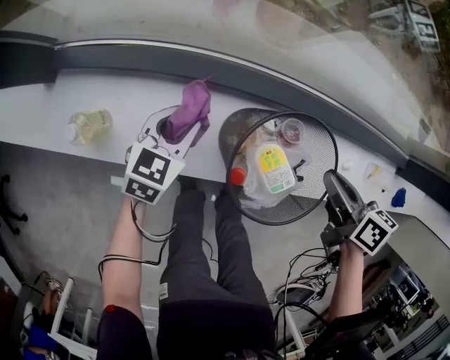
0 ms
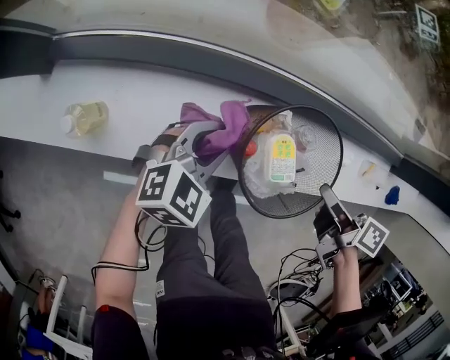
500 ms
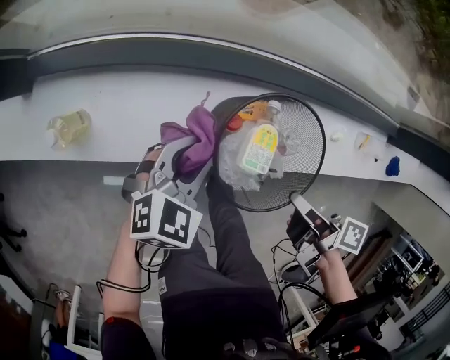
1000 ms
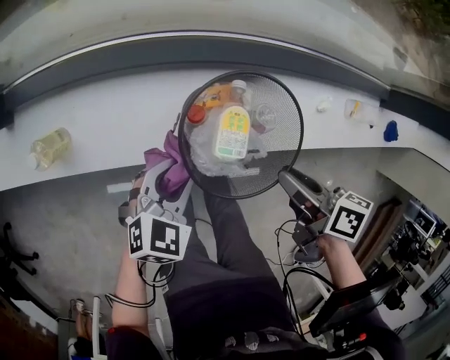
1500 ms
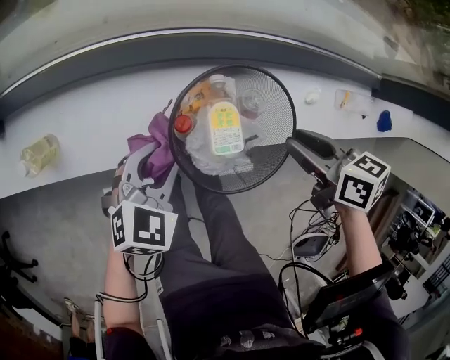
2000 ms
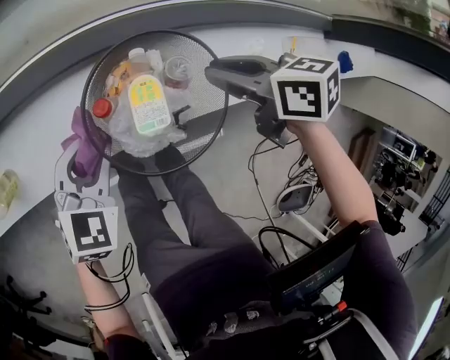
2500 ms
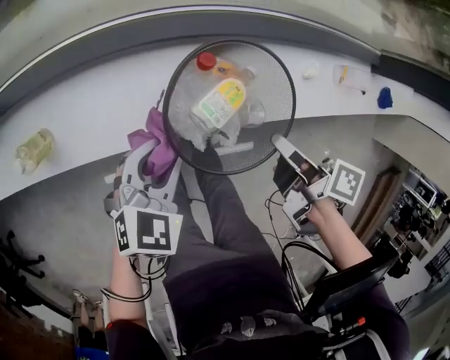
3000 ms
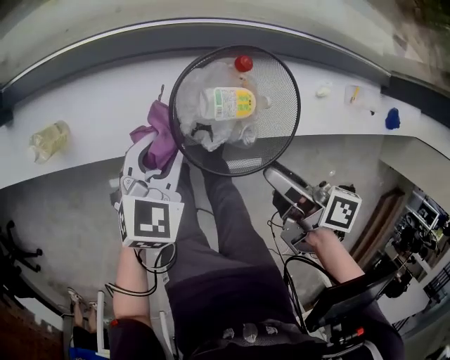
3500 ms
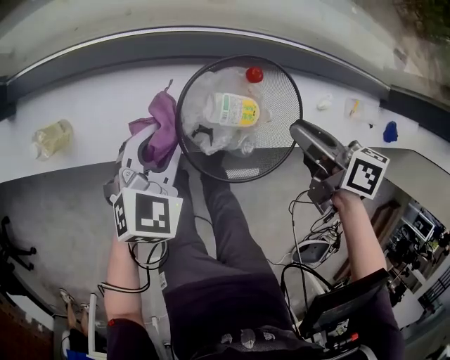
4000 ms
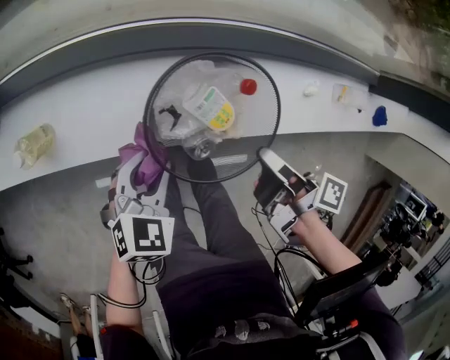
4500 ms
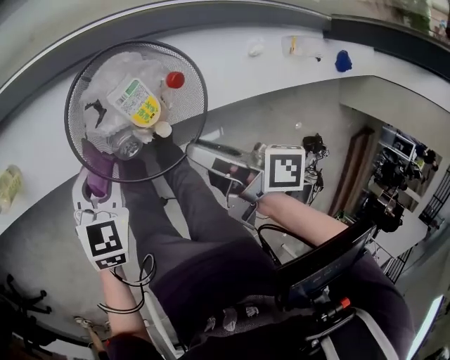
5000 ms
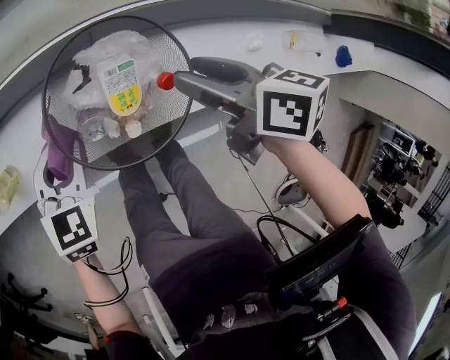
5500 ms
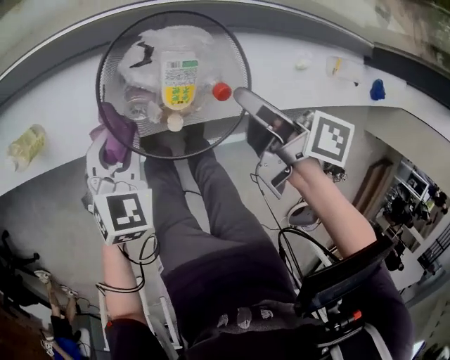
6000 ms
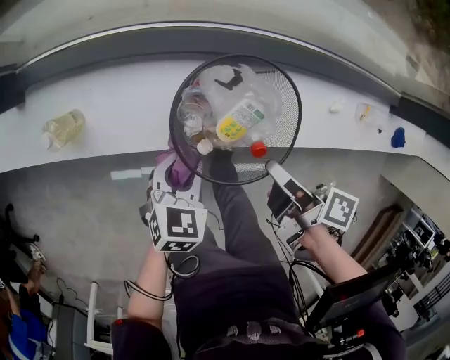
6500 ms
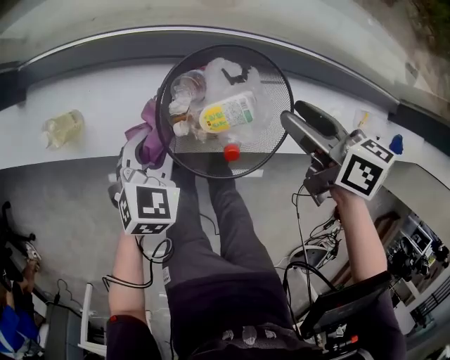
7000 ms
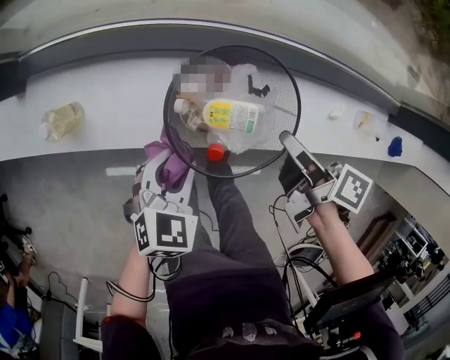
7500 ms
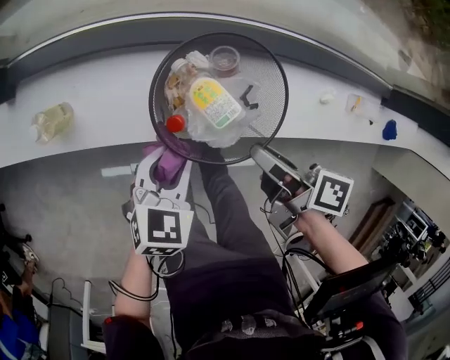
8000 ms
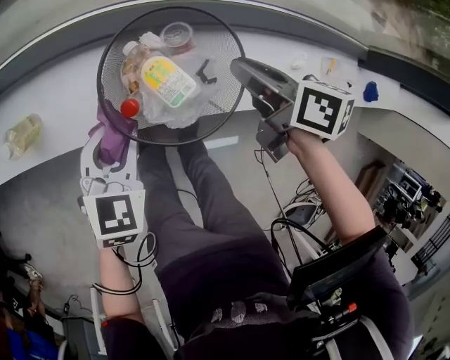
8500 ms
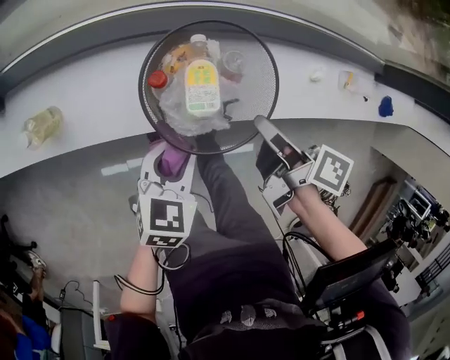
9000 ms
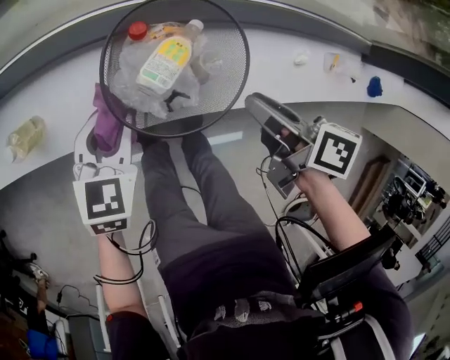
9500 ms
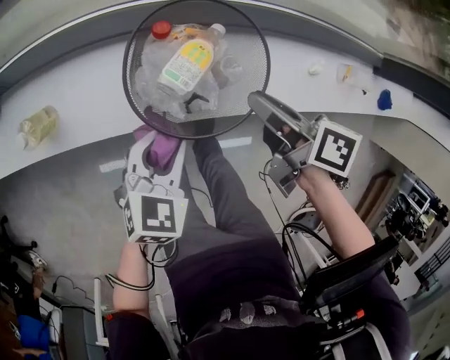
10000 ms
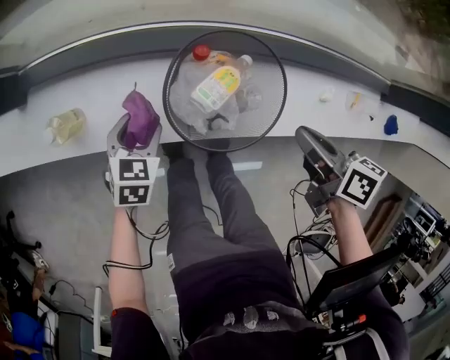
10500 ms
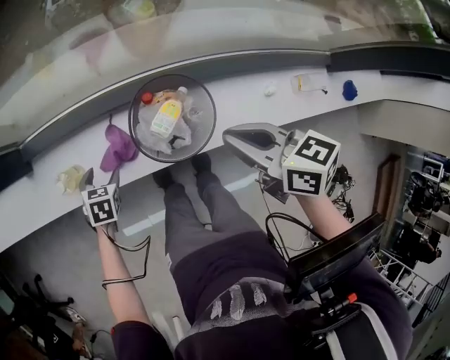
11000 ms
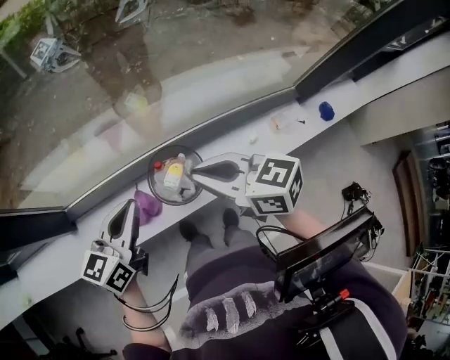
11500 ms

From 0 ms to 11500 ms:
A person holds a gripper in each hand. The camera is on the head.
From 0 ms to 2000 ms: The left gripper shifts about 15 cm to the right, backward and upward, and swivels some 20 degrees. The right gripper travels backward by some 5 cm.
From 2000 ms to 4000 ms: The right gripper swings forward and backward, about 15 cm each way, with 2 reversals, and opens, then closes again.
From 4000 ms to 6000 ms: The left gripper goes forward and backward, roughly 10 cm each way, reversing 2 times, while the right gripper swings forward and backward, roughly 10 cm each way, with 2 reversals, and rotates approximately 30 degrees.
From 6000 ms to 7500 ms: The right gripper moves forward and backward over some 10 cm, changing direction 2 times, and opens, then closes again.
From 7500 ms to 9500 ms: The right gripper goes forward and backward, some 10 cm each way, reversing 2 times. The left gripper is displaced forward by about 5 cm.
From 9500 ms to 11500 ms: Both grippers travel together upward, about 30 cm. The left gripper tilts its fingers roughly 30 degrees upward, and opens and closes again, while the right gripper rolls counterclockwise, seen from behind, by approximately 40 degrees, and closes.

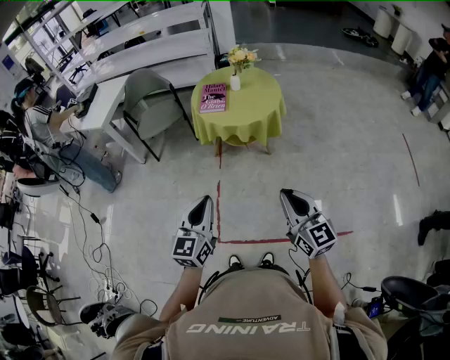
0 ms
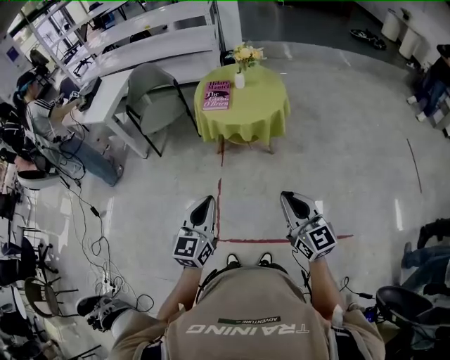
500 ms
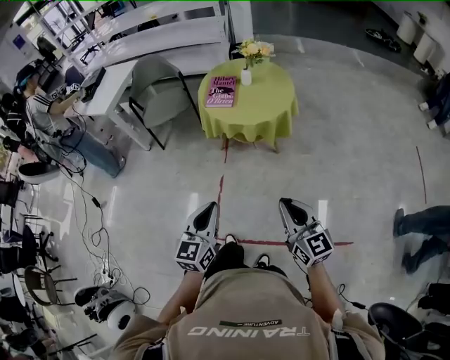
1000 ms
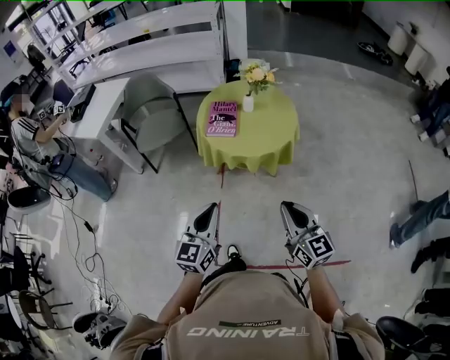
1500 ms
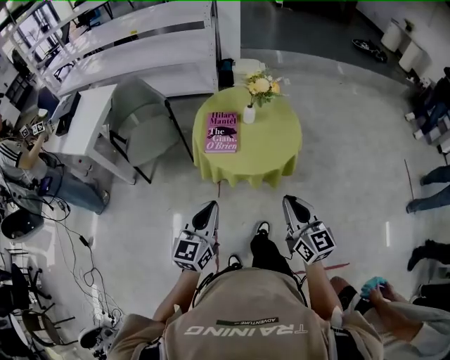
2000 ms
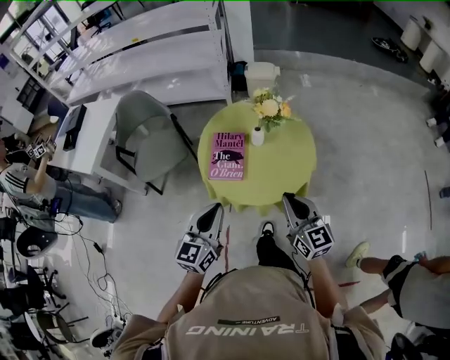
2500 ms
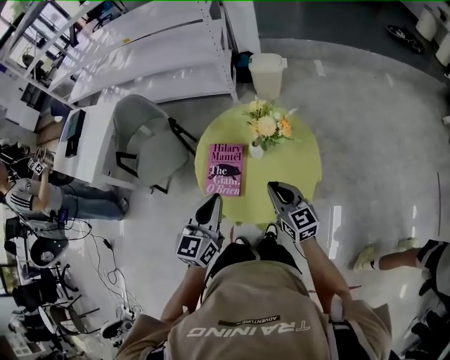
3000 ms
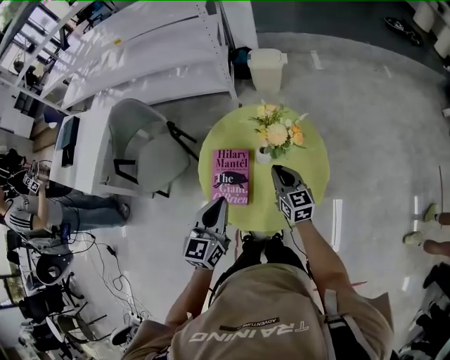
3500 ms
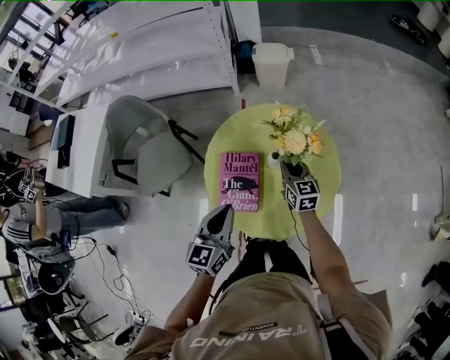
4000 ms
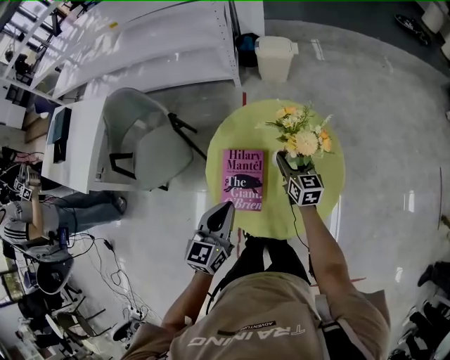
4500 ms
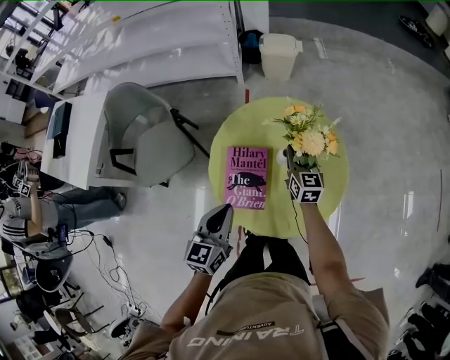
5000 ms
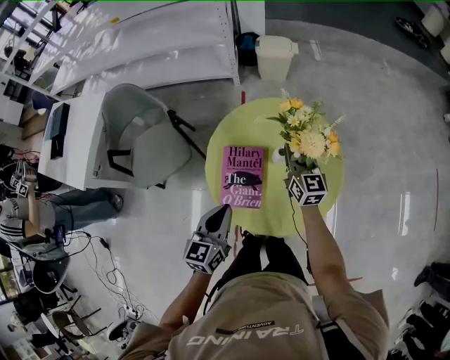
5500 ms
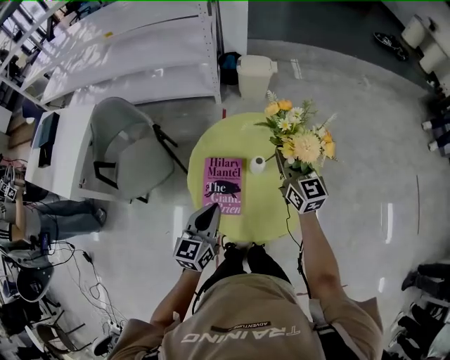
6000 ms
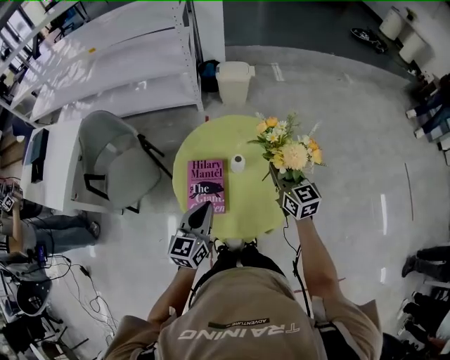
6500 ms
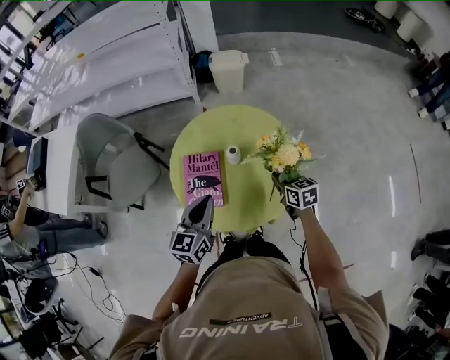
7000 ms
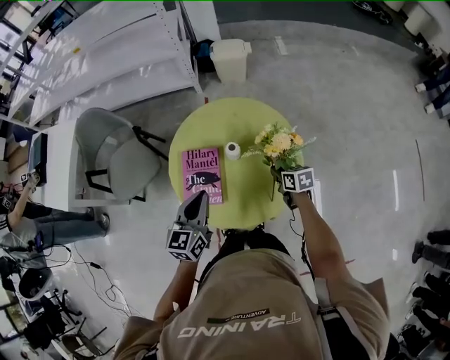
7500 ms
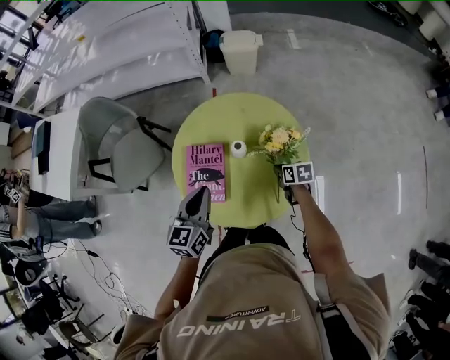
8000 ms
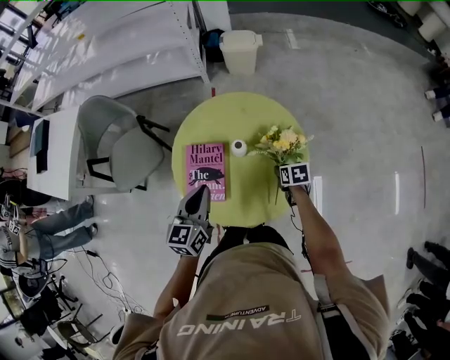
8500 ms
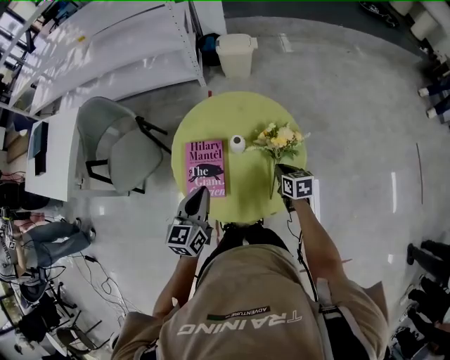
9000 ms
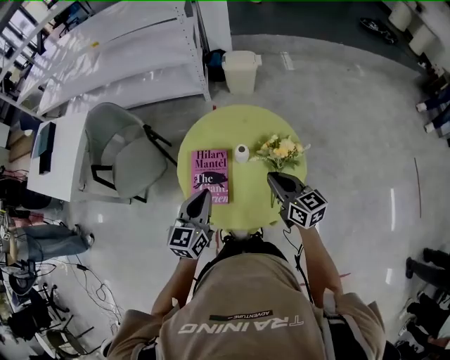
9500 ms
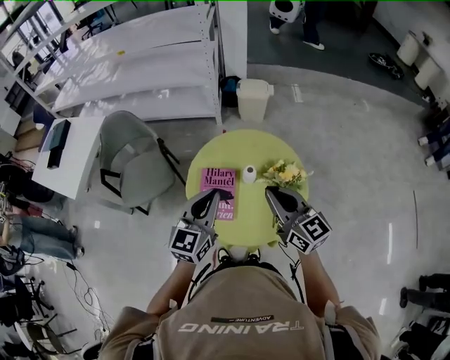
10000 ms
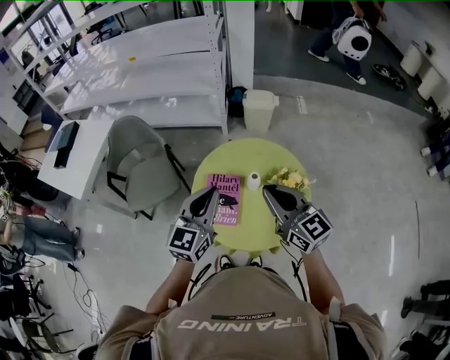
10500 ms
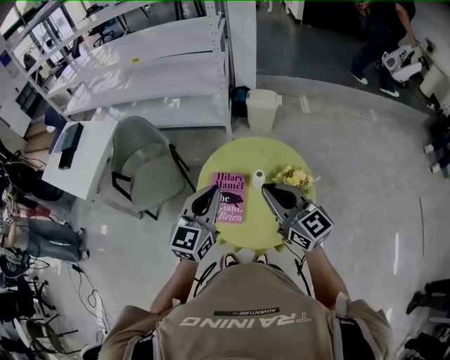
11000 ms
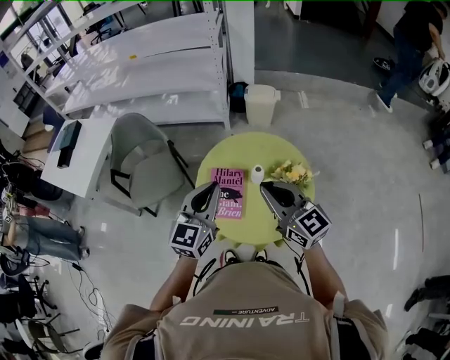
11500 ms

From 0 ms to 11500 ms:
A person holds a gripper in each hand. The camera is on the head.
From 0 ms to 2000 ms: Both grippers move forward, about 35 cm.
From 2000 ms to 4000 ms: The grippers both shift forward by about 50 cm.
From 4000 ms to 6000 ms: The right gripper heads upward, covering roughly 15 cm, and opens and closes again.
From 6000 ms to 7500 ms: The left gripper shifts some 5 cm to the right, while the right gripper is displaced downward and to the right by roughly 25 cm, and angles its fingers downward, by roughly 40 degrees.
From 7500 ms to 9500 ms: The right gripper heads upward and to the left, covering some 20 cm, angles its fingers upward, by approximately 30 degrees, and opens and closes again.
From 9500 ms to 11500 ms: The left gripper heads upward, covering about 15 cm. The right gripper heads upward and to the left, covering about 20 cm, and swivels some 30 degrees.

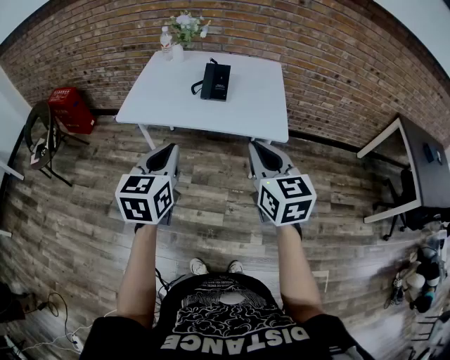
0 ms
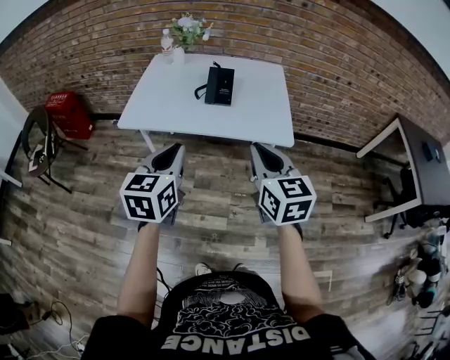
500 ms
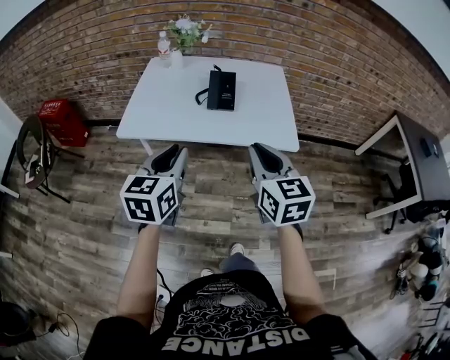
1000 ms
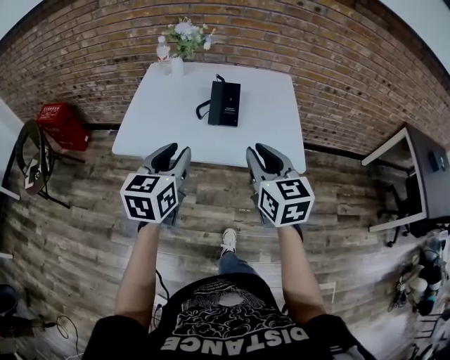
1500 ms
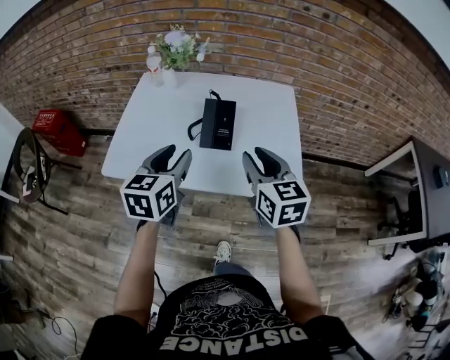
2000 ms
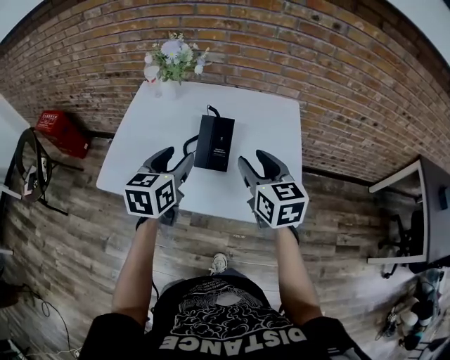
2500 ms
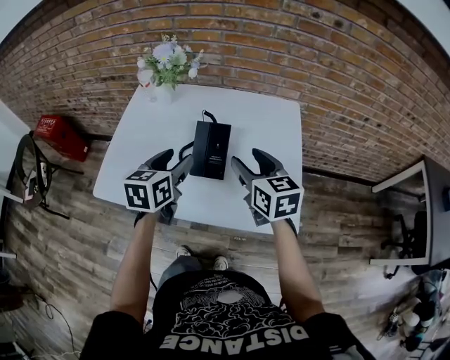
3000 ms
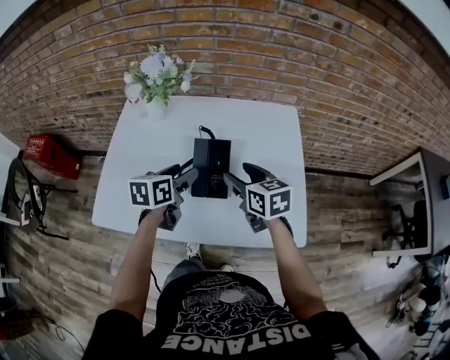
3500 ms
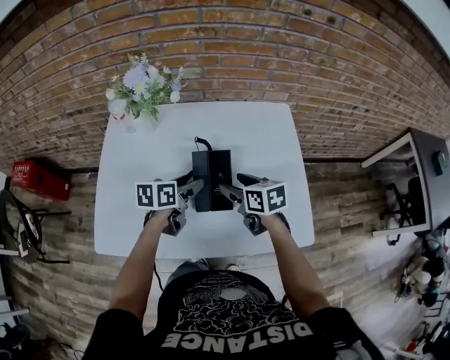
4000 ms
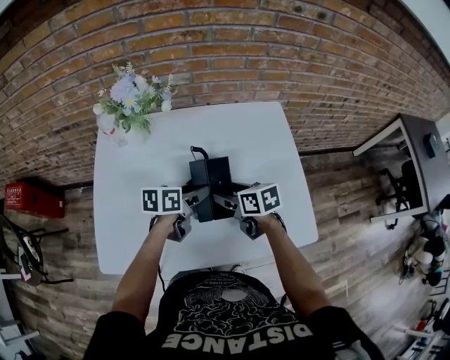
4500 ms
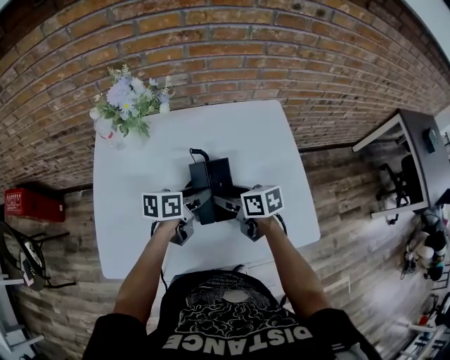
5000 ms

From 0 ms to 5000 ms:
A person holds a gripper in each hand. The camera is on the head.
From 0 ms to 2500 ms: The grippers both shift forward by roughly 35 cm. The left gripper opens. The right gripper opens.
From 2500 ms to 5000 ms: The right gripper shifts approximately 25 cm downward, forward and to the left, rotates about 40 degrees, and opens its fingers. The left gripper travels downward and forward by roughly 25 cm, and rotates approximately 50 degrees.
